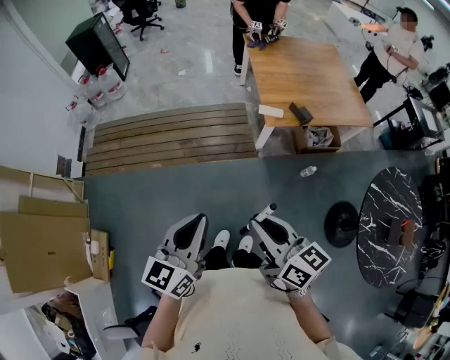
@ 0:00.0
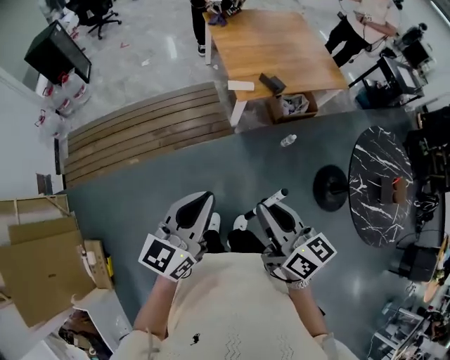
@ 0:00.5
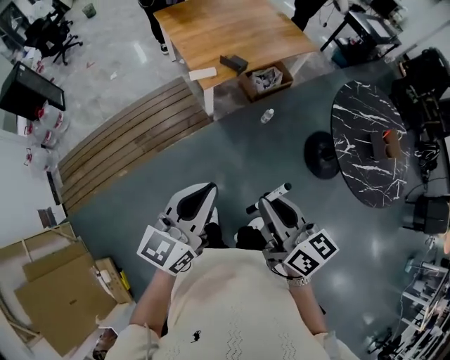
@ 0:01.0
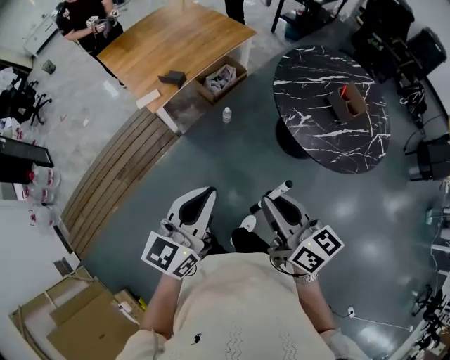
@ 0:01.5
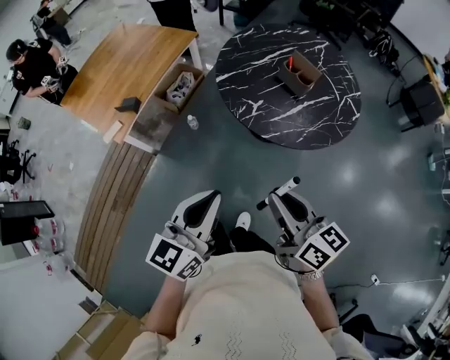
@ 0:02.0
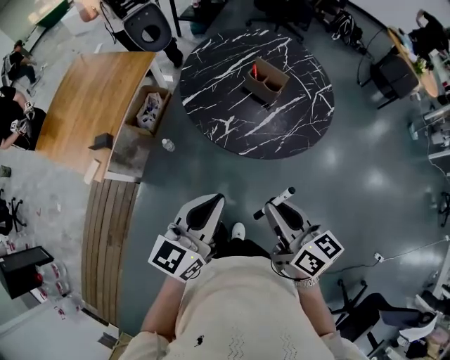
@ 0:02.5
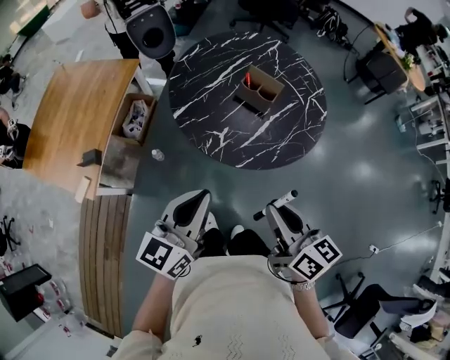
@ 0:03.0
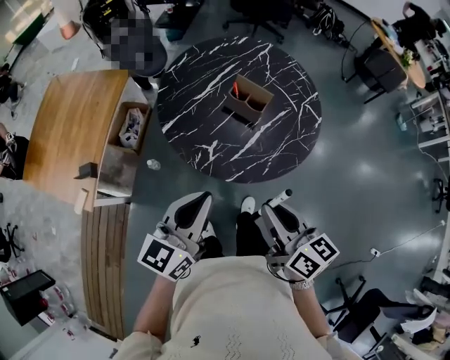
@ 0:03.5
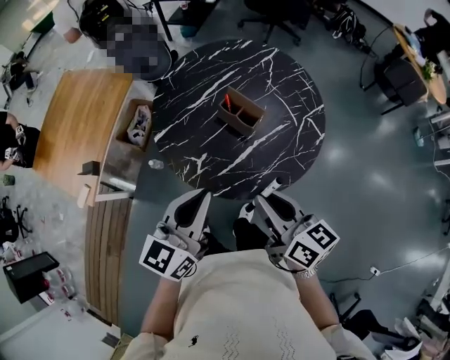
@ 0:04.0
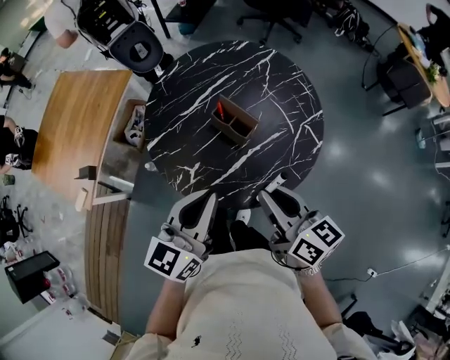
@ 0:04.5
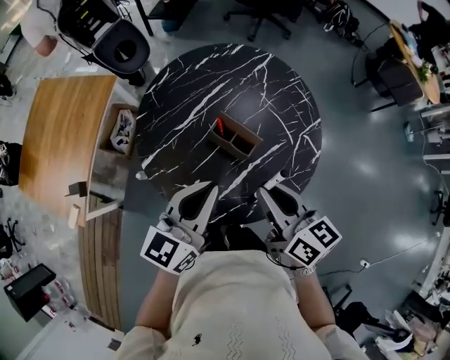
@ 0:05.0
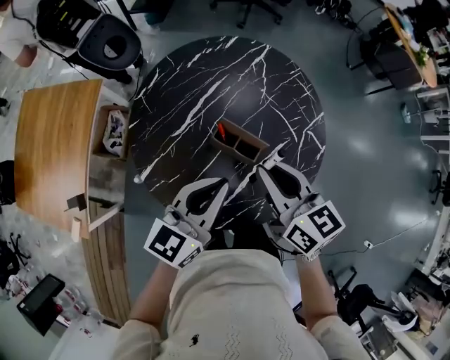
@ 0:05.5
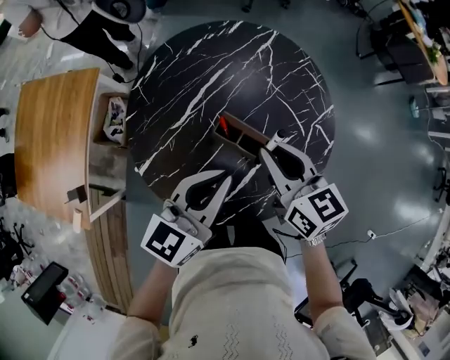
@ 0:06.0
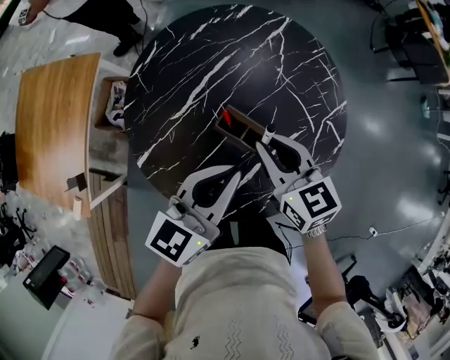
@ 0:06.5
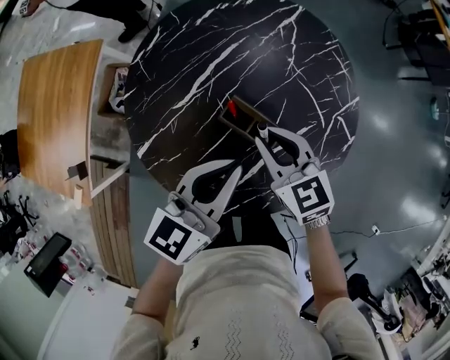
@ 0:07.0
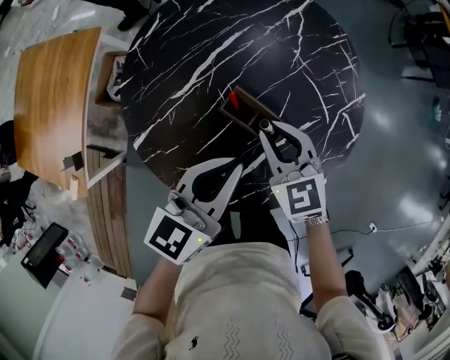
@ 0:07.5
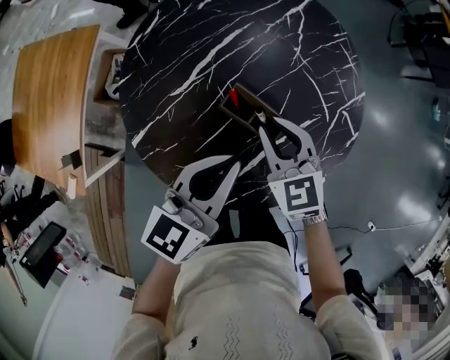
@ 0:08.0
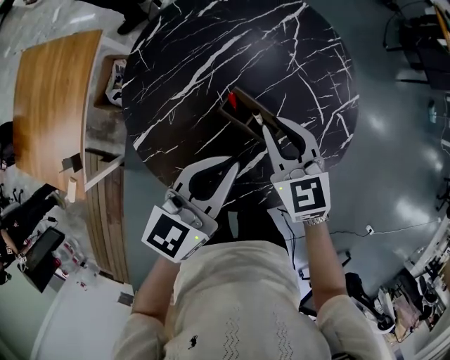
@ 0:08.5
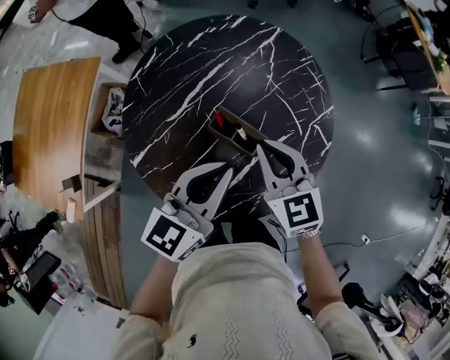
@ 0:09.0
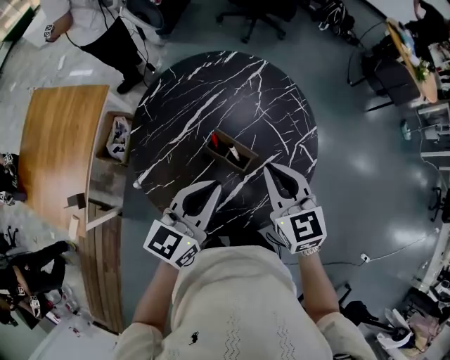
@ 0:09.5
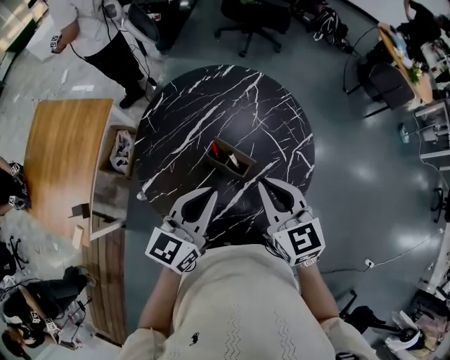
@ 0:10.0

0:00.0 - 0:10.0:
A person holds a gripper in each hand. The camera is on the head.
0:00.0 - 0:02.0: The two grippers travel together, approximately 50 cm. The right gripper rotates some 60 degrees; the left gripper swivels roughly 60 degrees.
0:02.0 - 0:04.0: Both grippers travel together forward and to the right, roughly 30 cm.
0:04.0 - 0:06.0: The two grippers go some 25 cm forward. The right gripper rotates approximately 20 degrees.
0:06.0 - 0:08.0: The left gripper shifts about 5 cm downward. The right gripper is displaced downward by approximately 10 cm, and turns by some 30 degrees.
0:08.0 - 0:10.0: The left gripper goes about 10 cm upward. Meanwhile the right gripper moves upward and backward, roughly 20 cm.

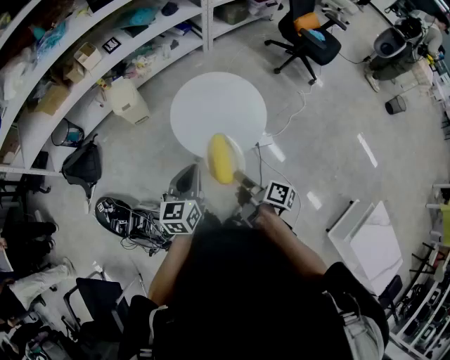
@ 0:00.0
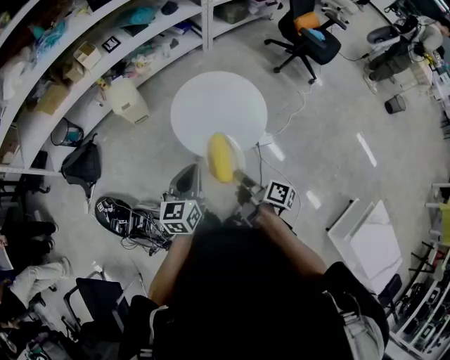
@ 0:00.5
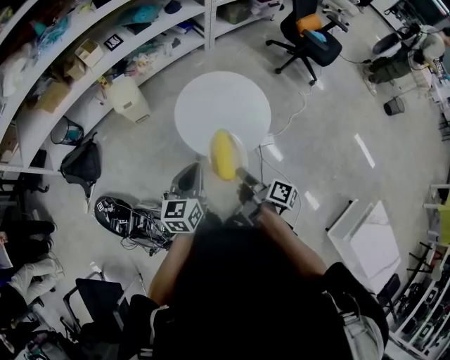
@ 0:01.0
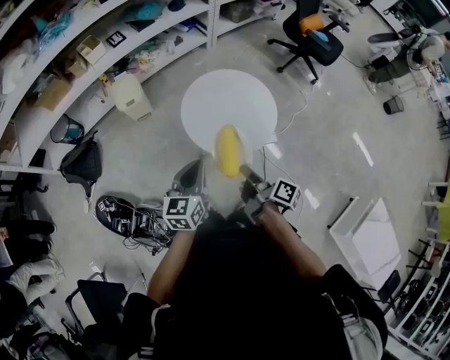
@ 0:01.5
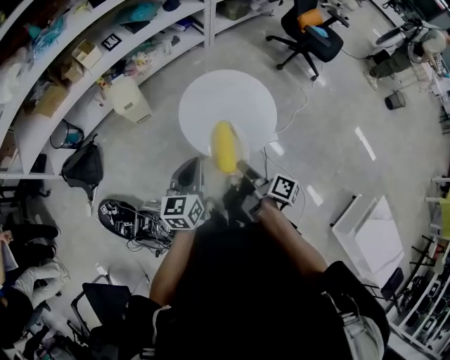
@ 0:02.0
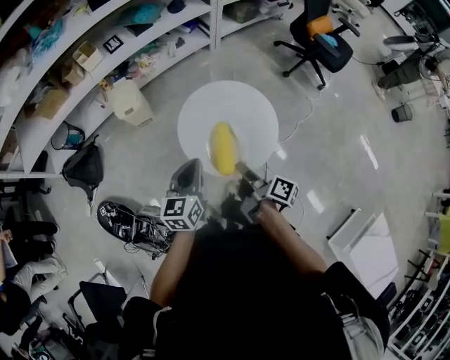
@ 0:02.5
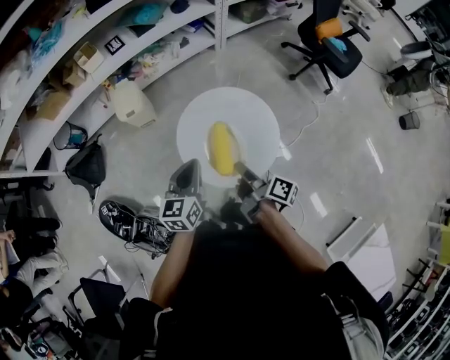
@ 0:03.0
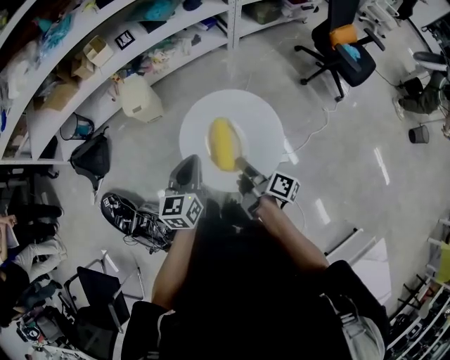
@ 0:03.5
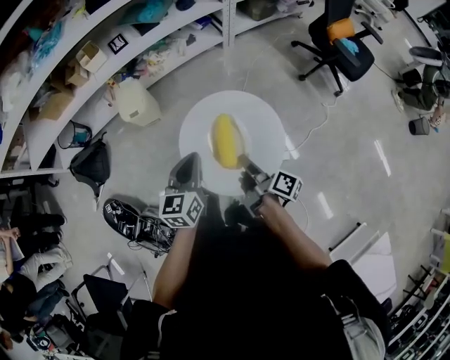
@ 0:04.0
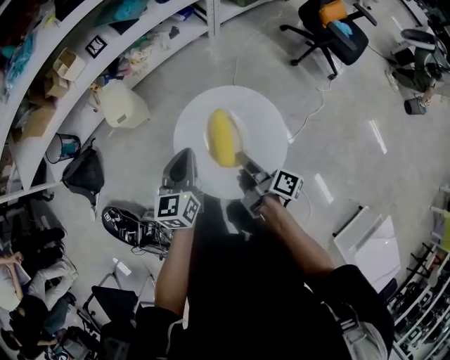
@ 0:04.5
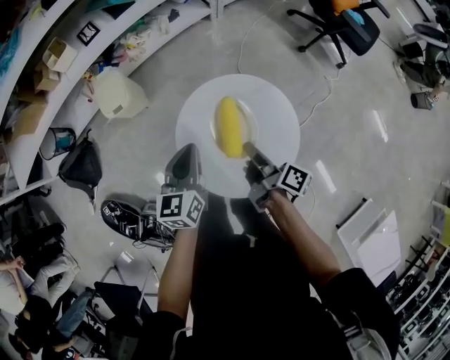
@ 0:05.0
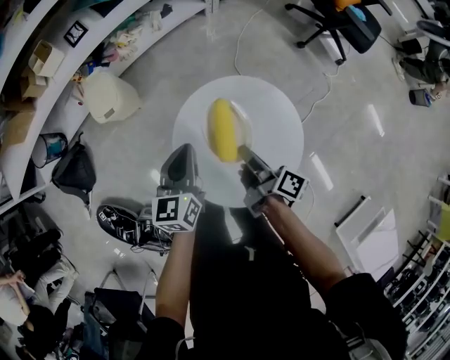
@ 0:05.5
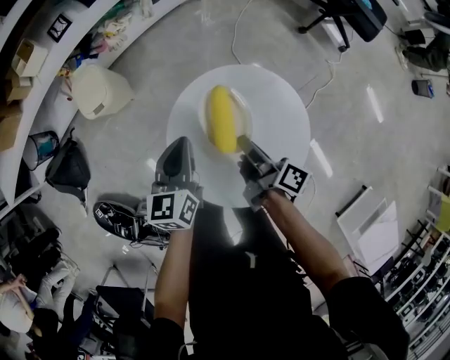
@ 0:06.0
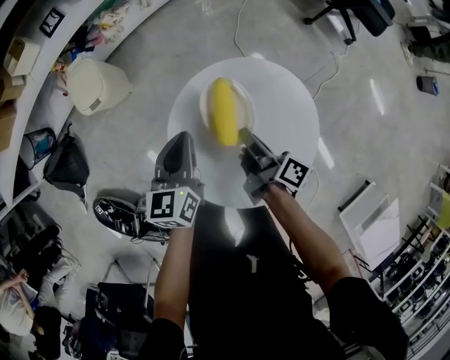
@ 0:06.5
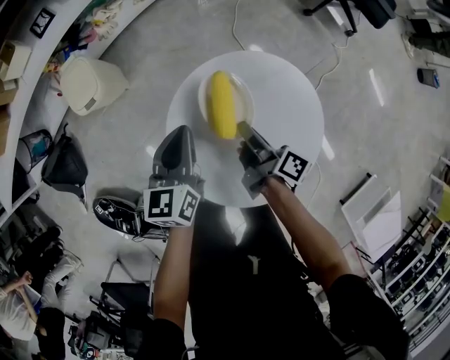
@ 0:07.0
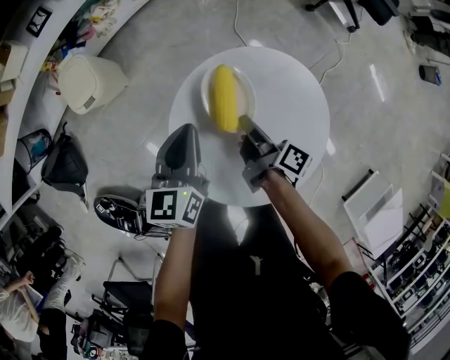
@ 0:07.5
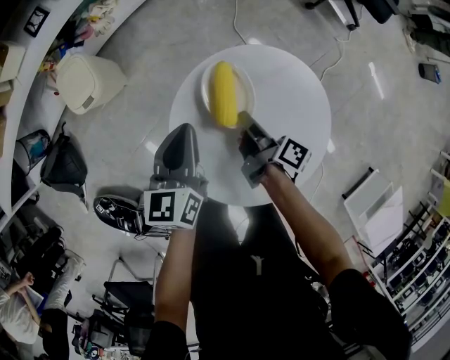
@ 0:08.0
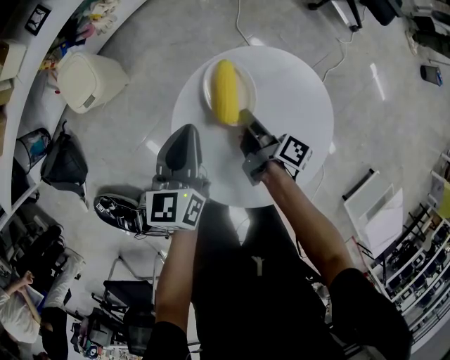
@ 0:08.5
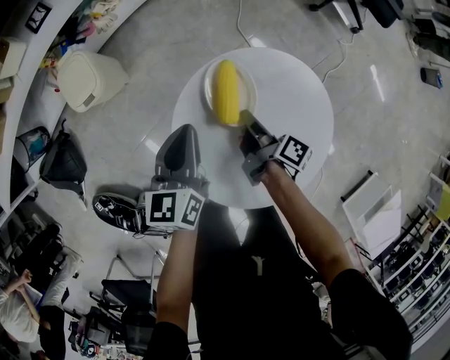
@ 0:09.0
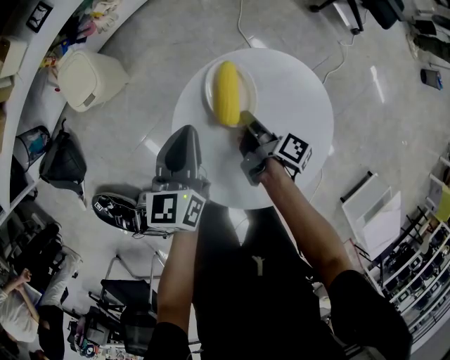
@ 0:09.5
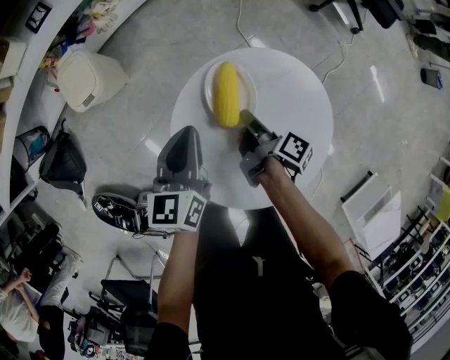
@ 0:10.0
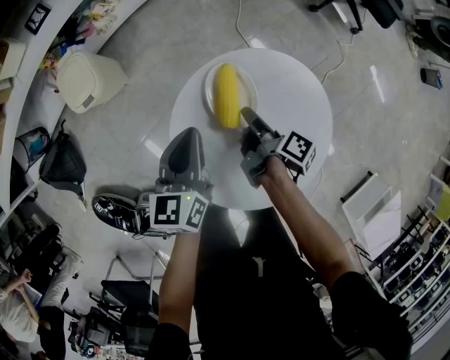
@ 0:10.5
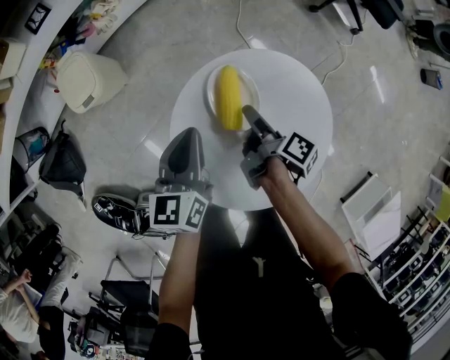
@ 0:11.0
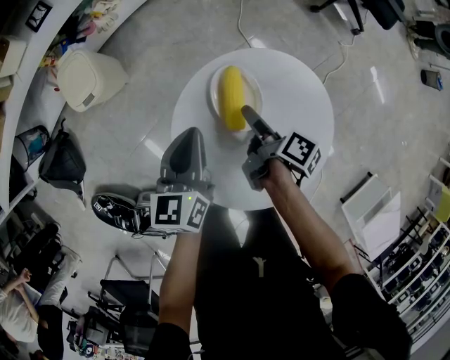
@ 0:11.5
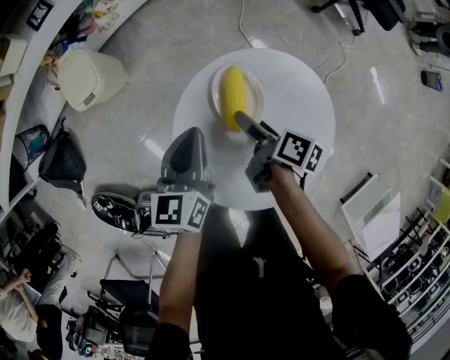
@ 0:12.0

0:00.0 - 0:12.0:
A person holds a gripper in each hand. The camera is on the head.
0:00.0 - 0:02.0: The left gripper moves about 5 cm.
0:02.0 - 0:04.0: The left gripper shifts by roughly 20 cm.
0:04.0 - 0:06.0: The left gripper shifts approximately 15 cm downward.

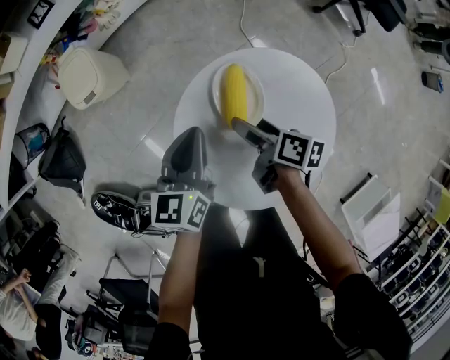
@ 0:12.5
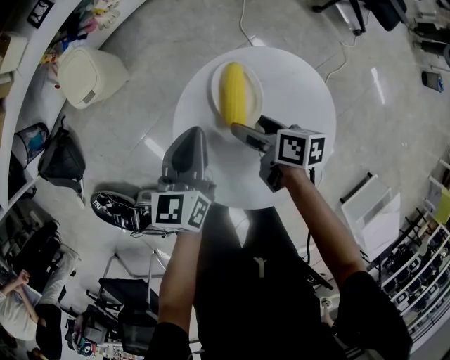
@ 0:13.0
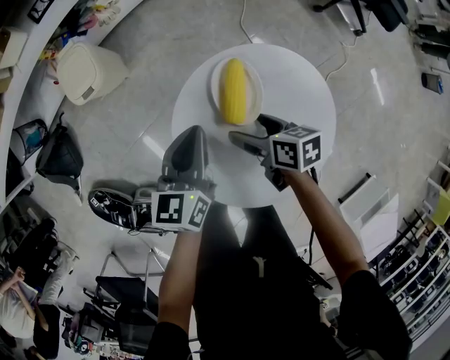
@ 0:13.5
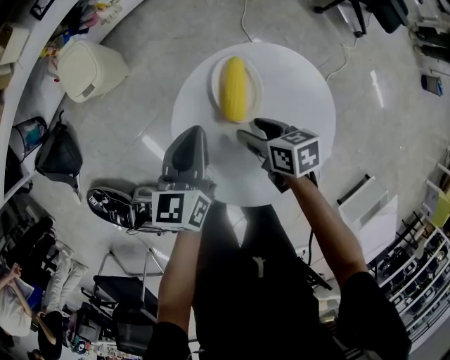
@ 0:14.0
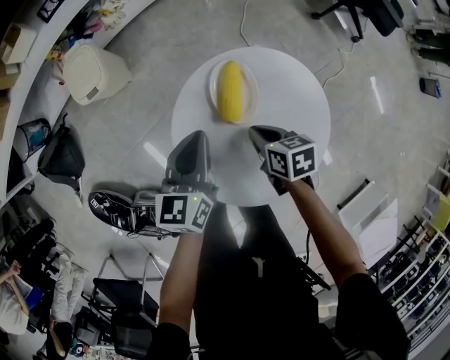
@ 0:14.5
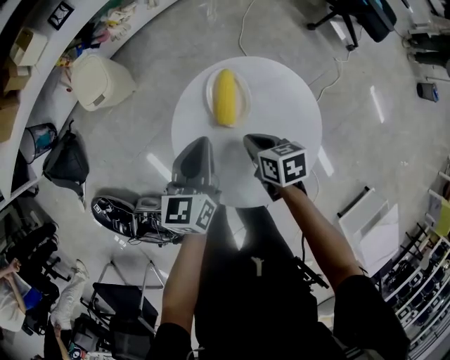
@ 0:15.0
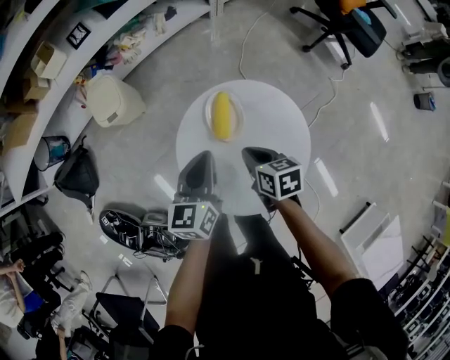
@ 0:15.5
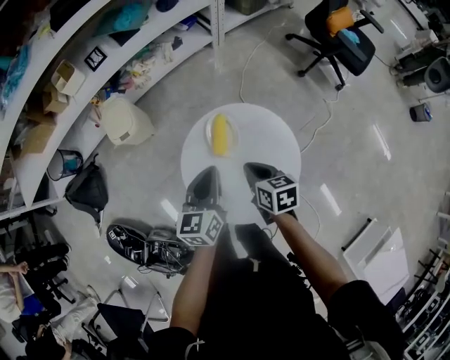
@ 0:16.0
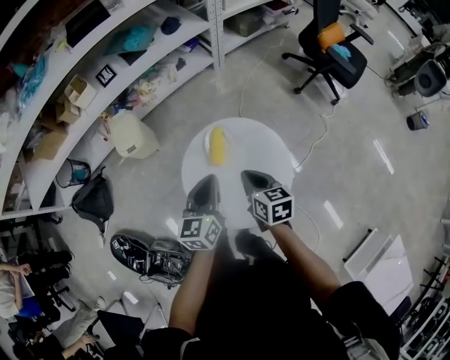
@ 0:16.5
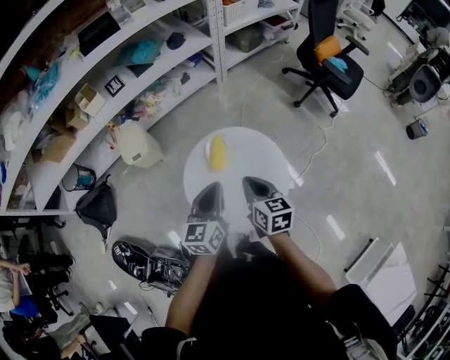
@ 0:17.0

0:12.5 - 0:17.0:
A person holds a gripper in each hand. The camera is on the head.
0:14.5 - 0:17.0: The left gripper heads upward, covering approximately 20 cm.

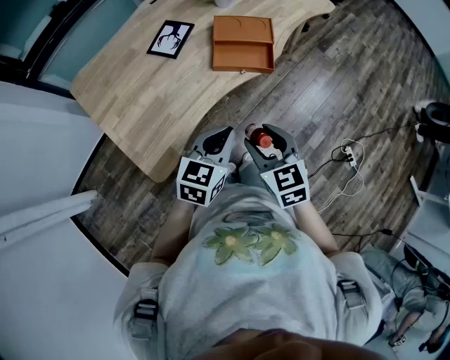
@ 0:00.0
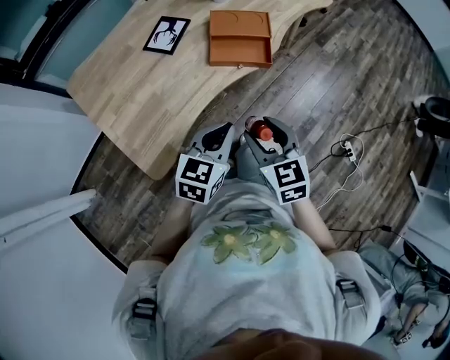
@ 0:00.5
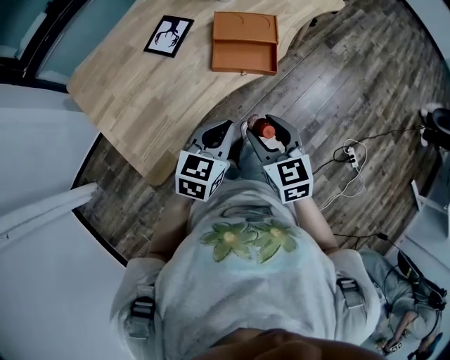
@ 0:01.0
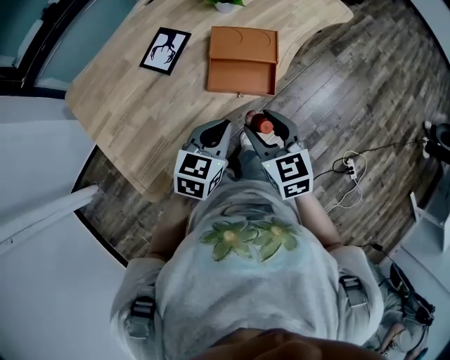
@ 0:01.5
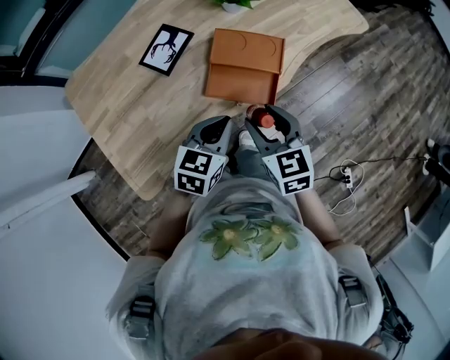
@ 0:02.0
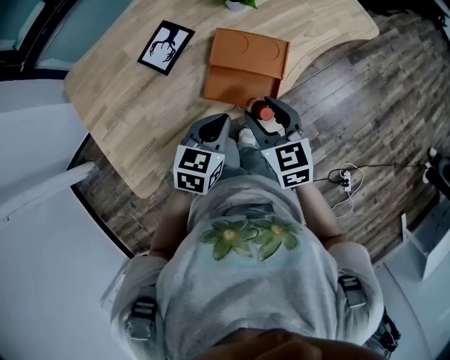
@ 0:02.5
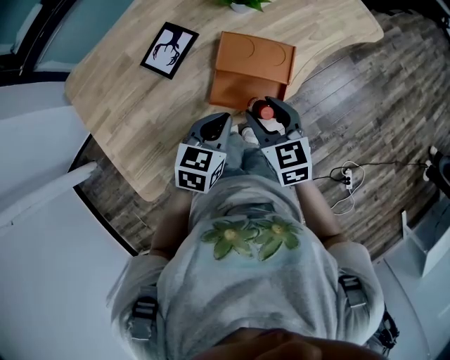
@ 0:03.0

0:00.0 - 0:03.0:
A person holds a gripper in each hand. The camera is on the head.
0:00.0 - 0:01.5: The grippers both shift forward by some 15 cm.
0:01.5 - 0:03.0: The two grippers go approximately 15 cm forward.
